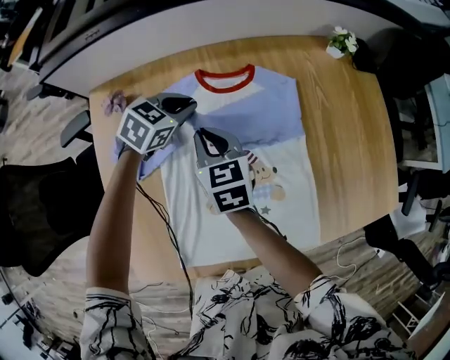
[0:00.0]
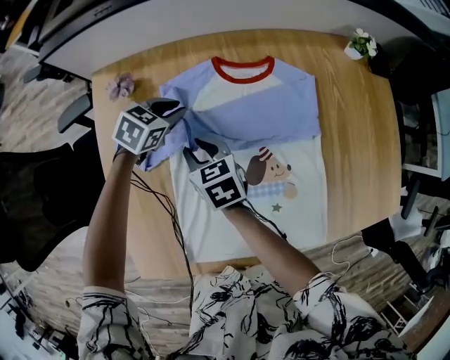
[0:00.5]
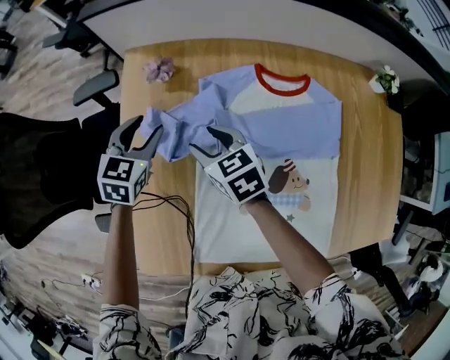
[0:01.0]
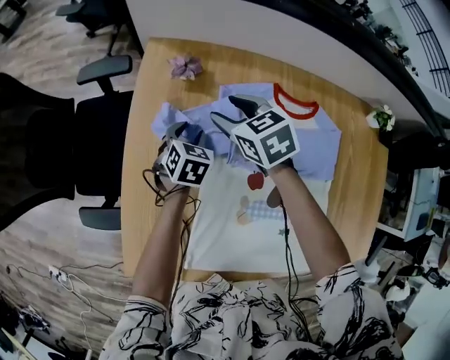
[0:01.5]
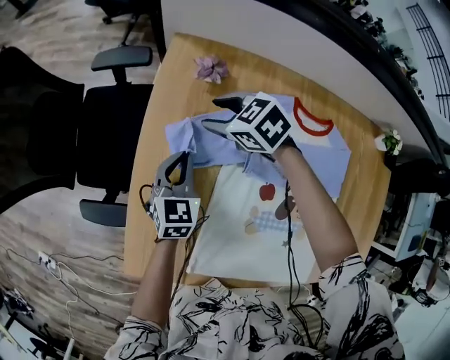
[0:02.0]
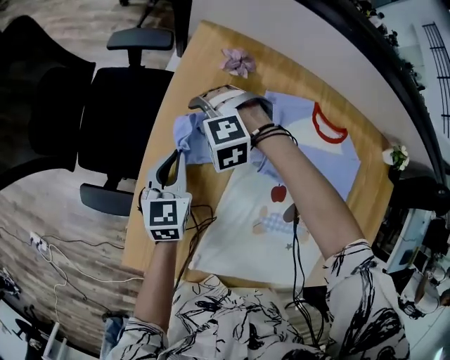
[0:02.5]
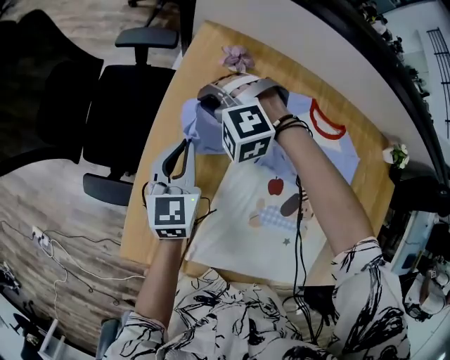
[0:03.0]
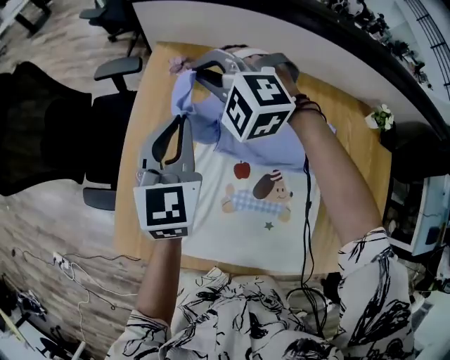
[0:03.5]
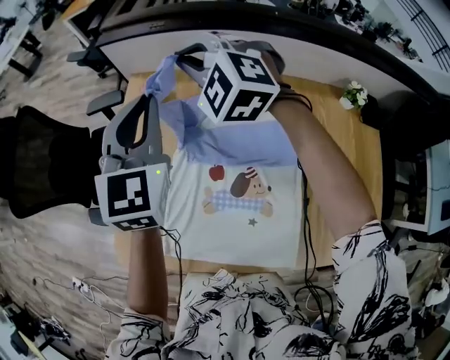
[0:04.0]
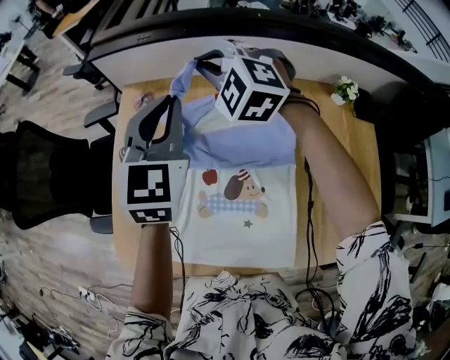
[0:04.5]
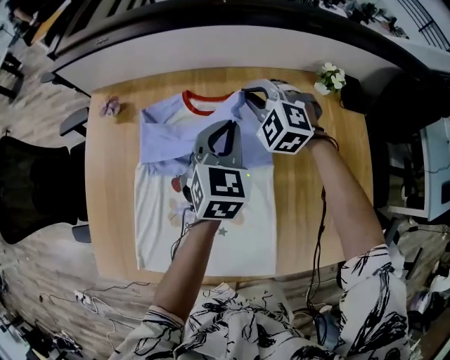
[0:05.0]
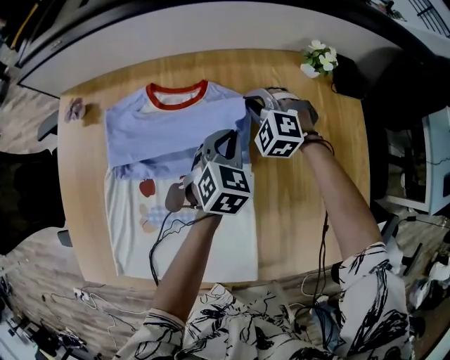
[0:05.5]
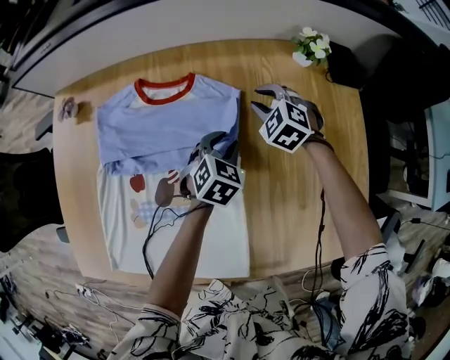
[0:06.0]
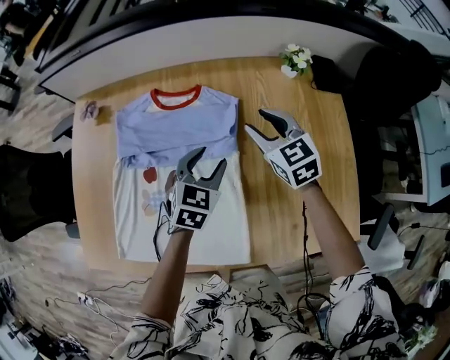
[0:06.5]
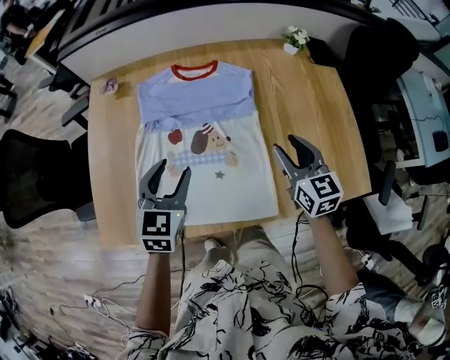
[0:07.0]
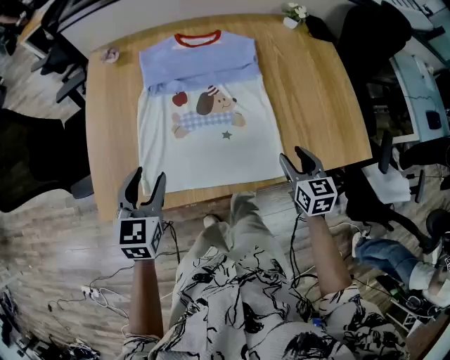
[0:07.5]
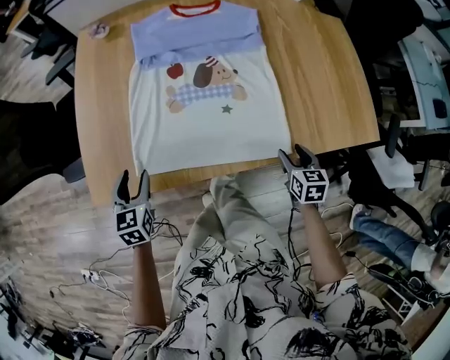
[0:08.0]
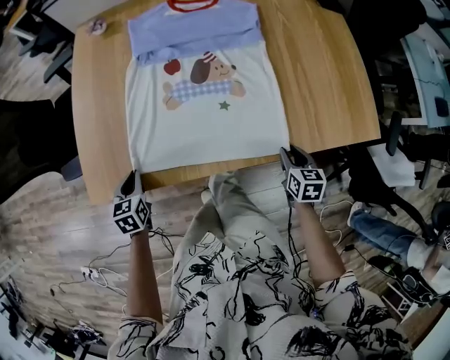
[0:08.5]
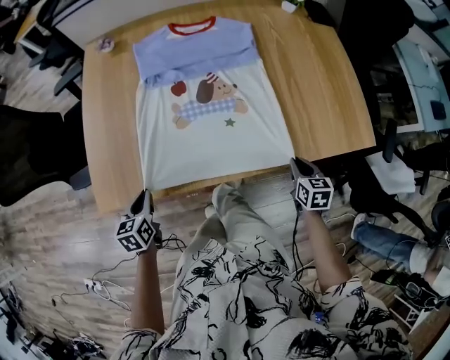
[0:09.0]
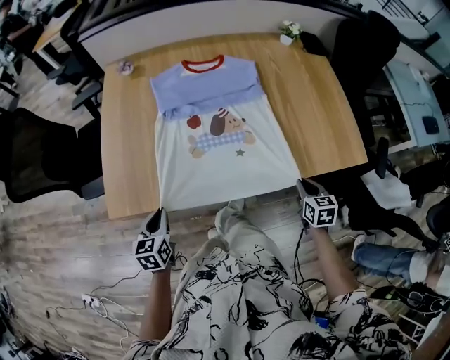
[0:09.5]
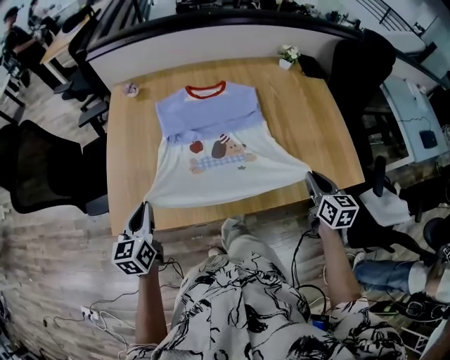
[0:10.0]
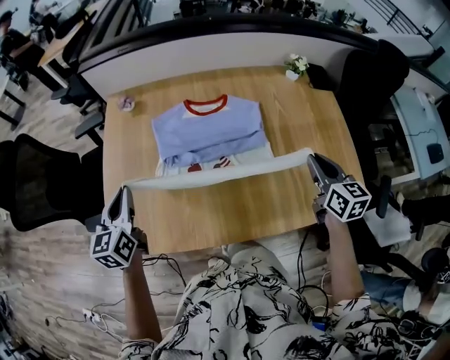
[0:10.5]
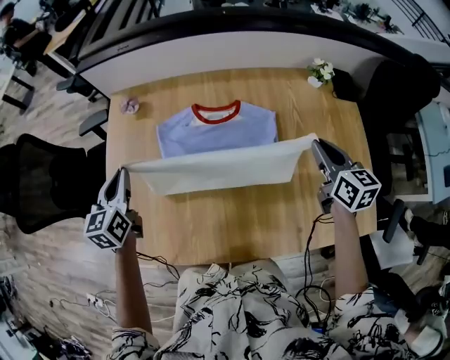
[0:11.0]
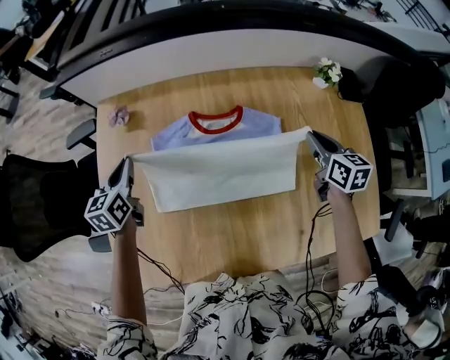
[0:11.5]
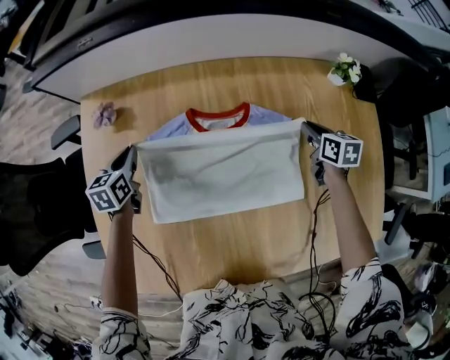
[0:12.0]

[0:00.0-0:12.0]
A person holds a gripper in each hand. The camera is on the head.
0:00.0 to 0:02.0: The right gripper swings up and down, roughly 10 cm each way, with 2 reversals, swivels approximately 60 degrees, and opens. Meanwhile the left gripper swings up and down, some 10 cm each way, with 3 reversals, changes its angle by about 60 degrees, and opens, then closes again.
0:02.0 to 0:04.0: Both grippers move upward and to the right, about 35 cm. The right gripper changes its angle by roughly 60 degrees, and closes its fingers, while the left gripper rotates approximately 30 degrees.
0:04.0 to 0:06.0: The pair of grippers is taken approximately 40 cm. The left gripper angles its fingers downward, by about 40 degrees. The right gripper turns by roughly 40 degrees.
0:06.0 to 0:08.0: The left gripper shifts roughly 60 cm to the left and backward, and swivels approximately 30 degrees; the right gripper goes approximately 50 cm backward, twists about 60 degrees clockwise, seen from behind, and opens.
0:08.0 to 0:10.0: Both grippers travel together upward, some 15 cm. The left gripper closes up. The right gripper closes its fingers.
0:10.0 to 0:12.0: The pair of grippers is taken forward, roughly 50 cm. The right gripper turns by roughly 20 degrees.

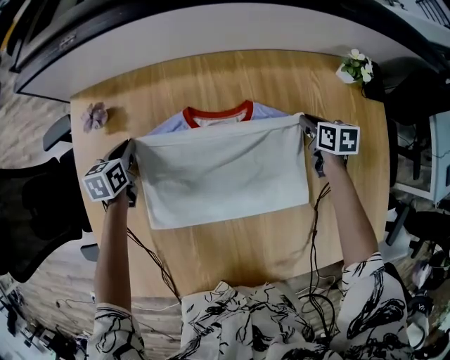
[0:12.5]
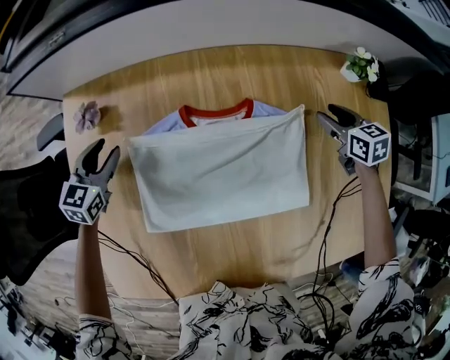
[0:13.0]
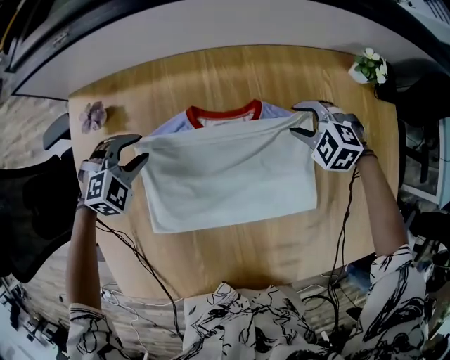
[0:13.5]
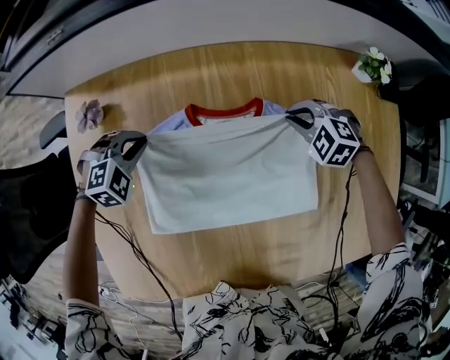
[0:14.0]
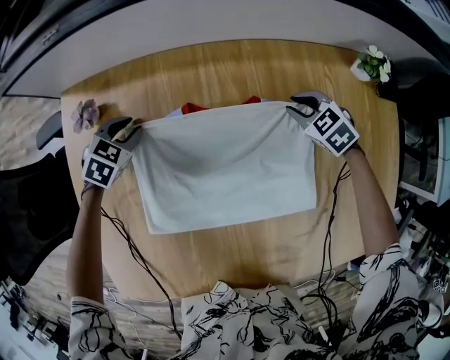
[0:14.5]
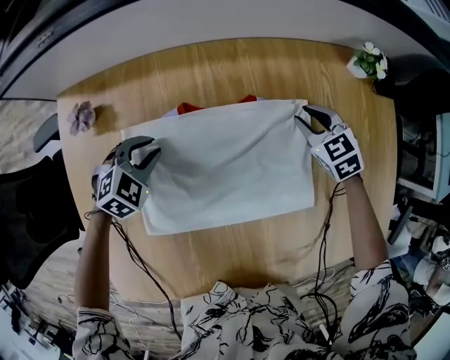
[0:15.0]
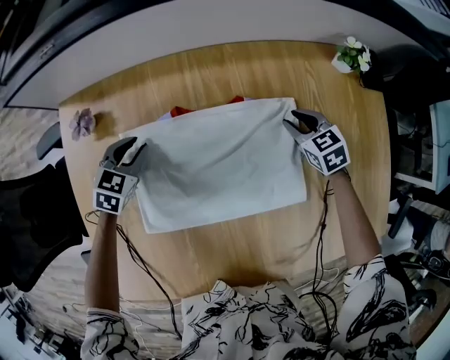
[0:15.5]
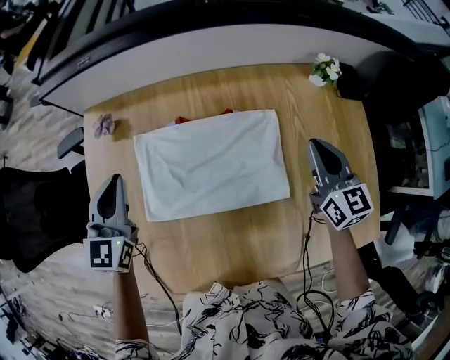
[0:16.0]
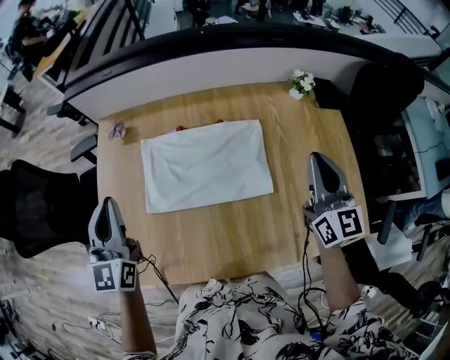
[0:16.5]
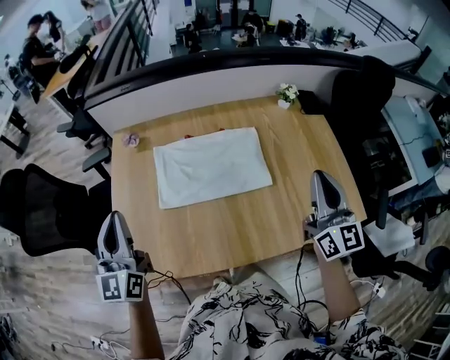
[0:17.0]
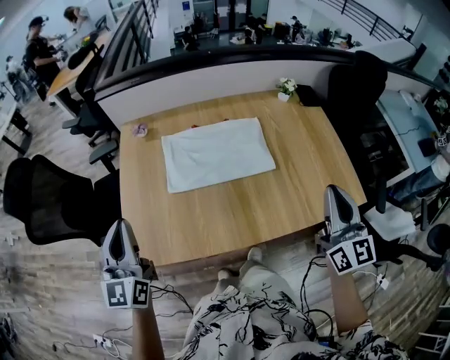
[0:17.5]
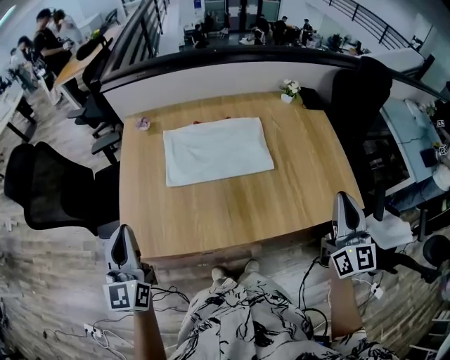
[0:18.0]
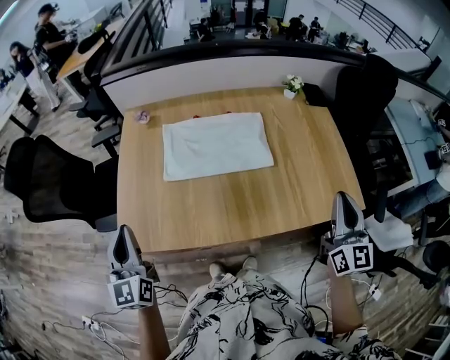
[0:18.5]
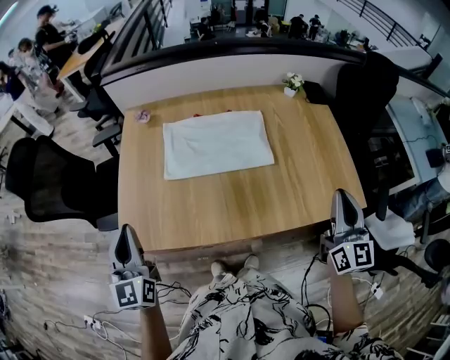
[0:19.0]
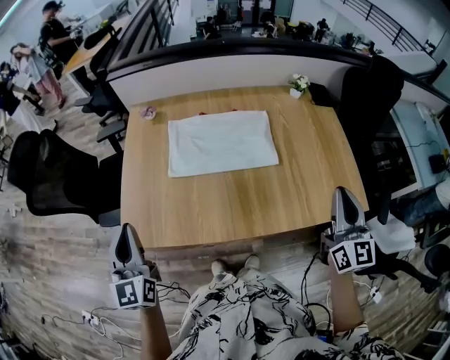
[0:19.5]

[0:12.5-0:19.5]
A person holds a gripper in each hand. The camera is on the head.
0:12.5 to 0:14.5: The left gripper ends up roughly 5 cm from where it was, and rotates around the line of its fingers by about 50 degrees, clockwise from behind. The right gripper is displaced to the left by about 5 cm, and rolls counterclockwise, seen from behind, by roughly 50 degrees.
0:14.5 to 0:16.0: The two grippers go some 30 cm upward and backward. The left gripper tips its fingers upward by about 40 degrees. The right gripper tips its fingers upward by approximately 40 degrees.
0:16.0 to 0:17.5: Both grippers move backward and upward, roughly 40 cm. The left gripper turns by about 20 degrees; the right gripper changes its angle by approximately 20 degrees.
0:17.5 to 0:19.5: The right gripper goes about 5 cm to the right, while the left gripper shifts about 5 cm backward.

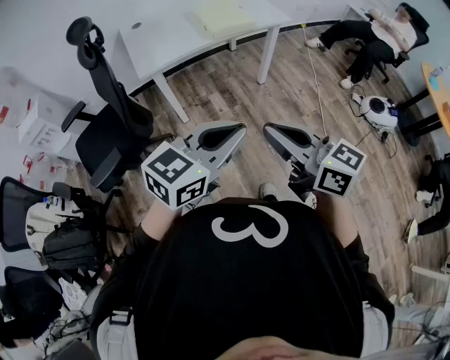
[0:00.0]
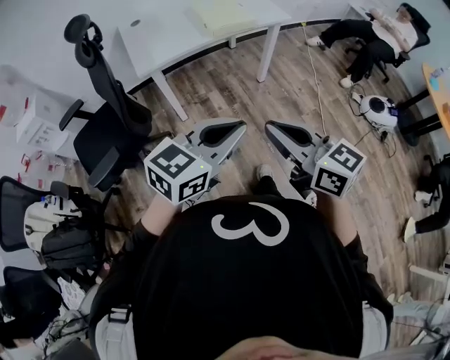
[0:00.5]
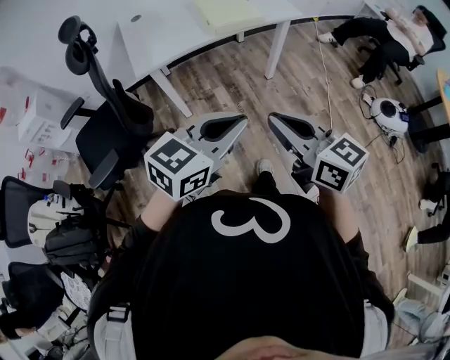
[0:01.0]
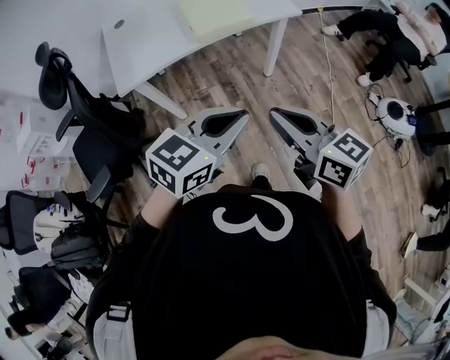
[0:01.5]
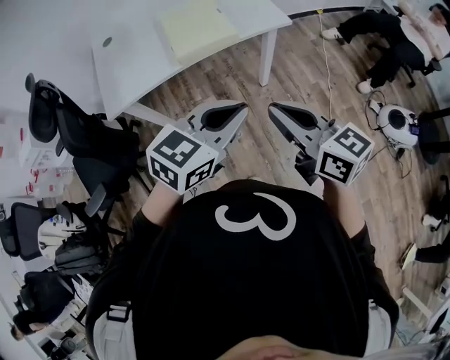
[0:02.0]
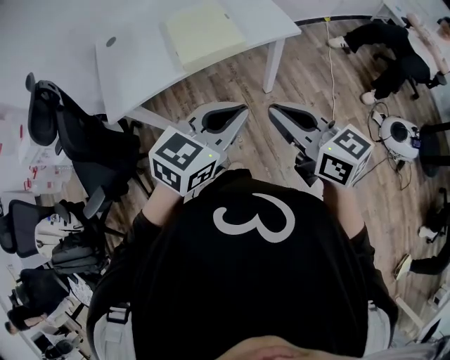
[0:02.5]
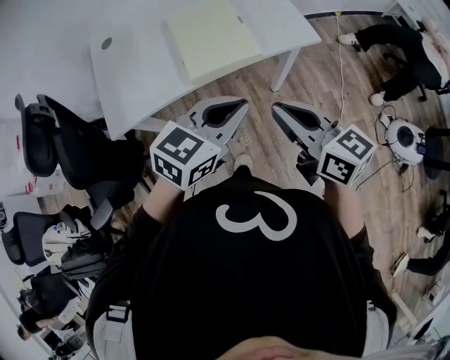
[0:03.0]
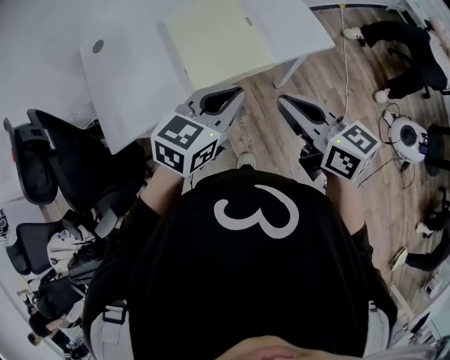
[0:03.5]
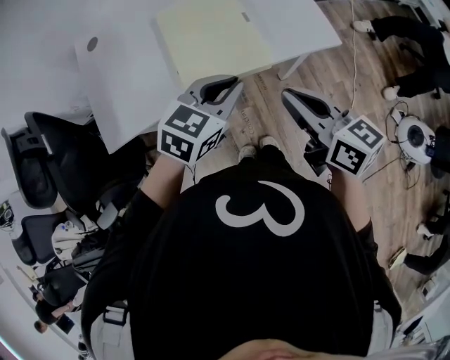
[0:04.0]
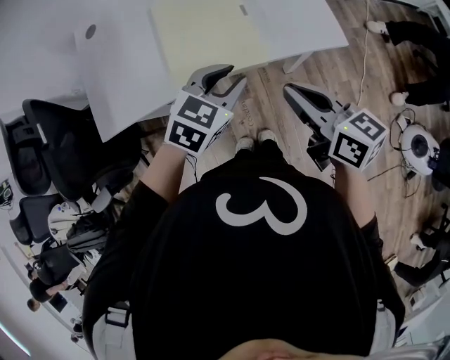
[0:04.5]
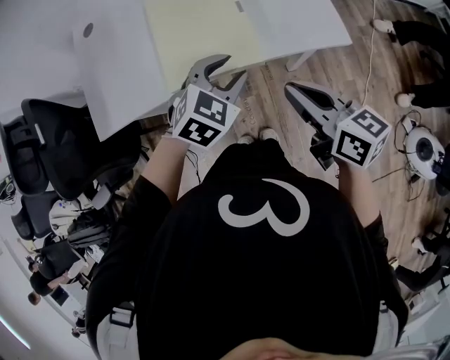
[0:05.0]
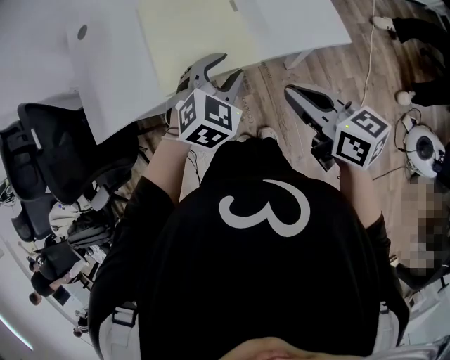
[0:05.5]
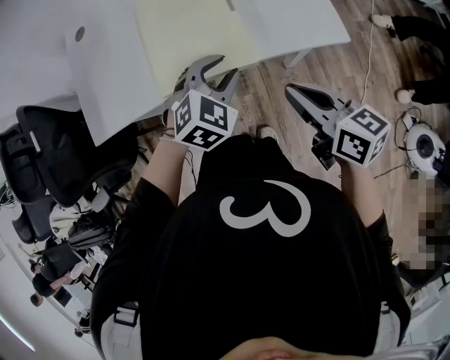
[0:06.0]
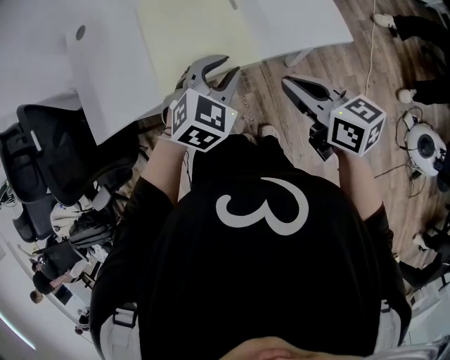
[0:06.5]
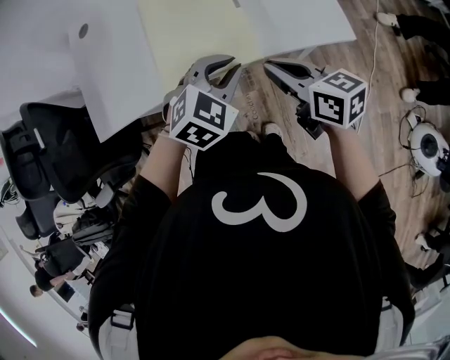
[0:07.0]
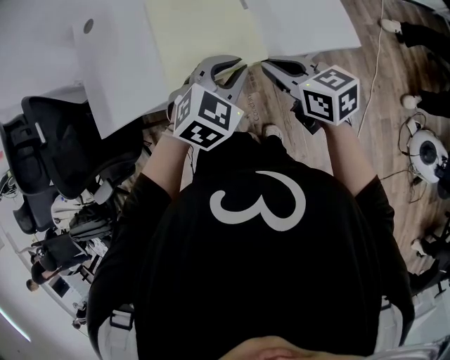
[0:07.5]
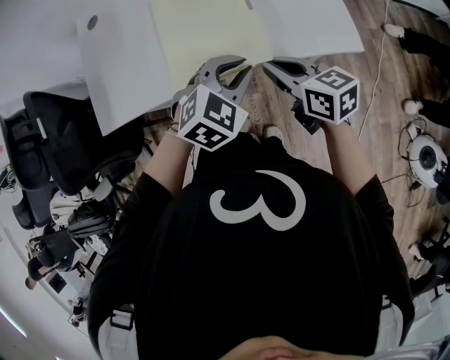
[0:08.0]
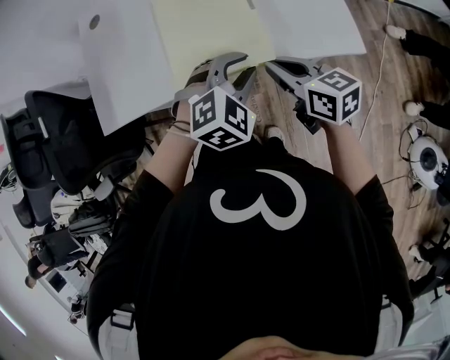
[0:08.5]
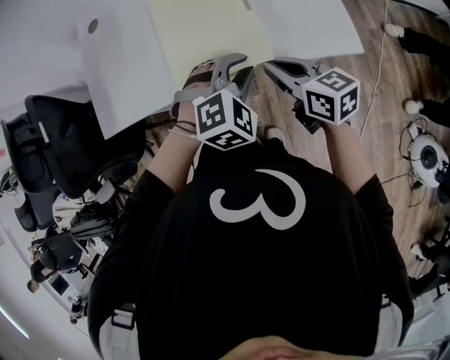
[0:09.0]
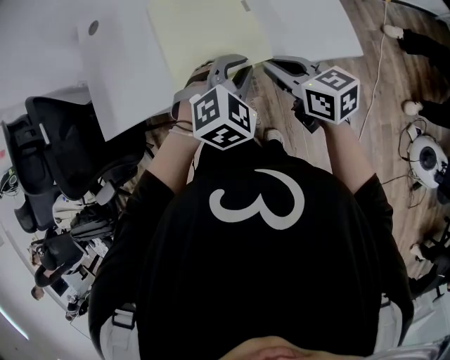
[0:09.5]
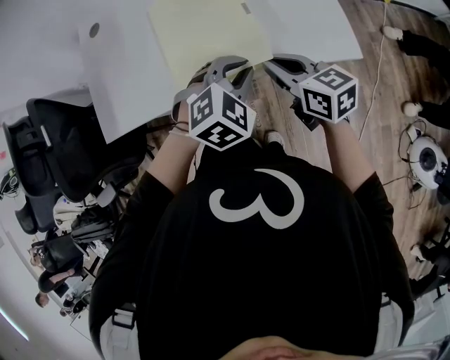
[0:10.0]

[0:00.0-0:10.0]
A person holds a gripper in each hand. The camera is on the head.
0:00.0 to 0:02.0: The grippers both shift forward and to the right by roughly 40 cm.
0:02.0 to 0:04.0: The two grippers go about 30 cm forward.
0:04.0 to 0:06.0: The right gripper moves downward and to the right, about 10 cm, while the left gripper travels downward and forward by roughly 10 cm, swivels approximately 30 degrees, and opens its fingers.
0:06.0 to 0:08.0: The left gripper closes; the right gripper moves forward and to the left, approximately 10 cm.
0:08.0 to 0:10.0: The grippers move only a little.
